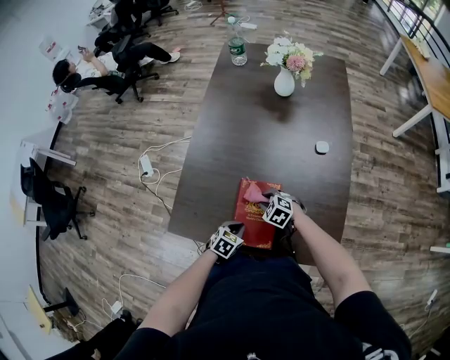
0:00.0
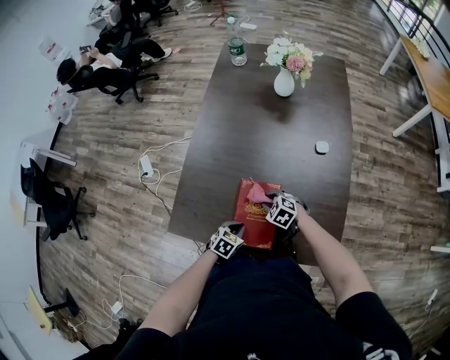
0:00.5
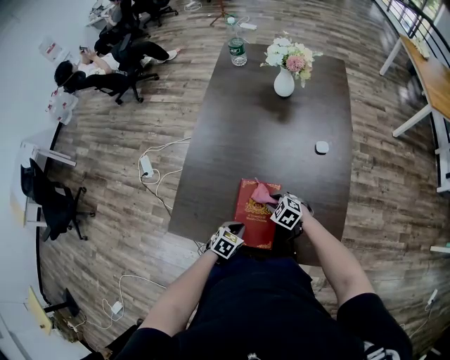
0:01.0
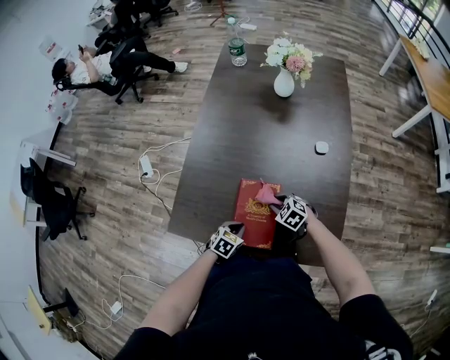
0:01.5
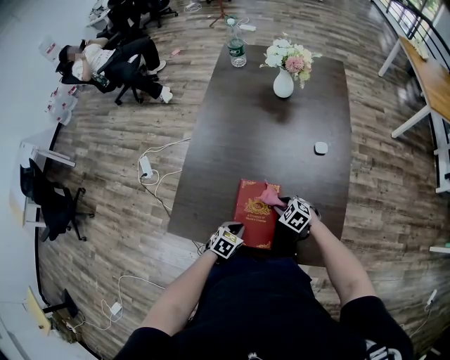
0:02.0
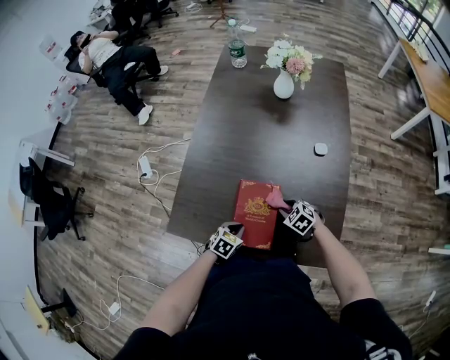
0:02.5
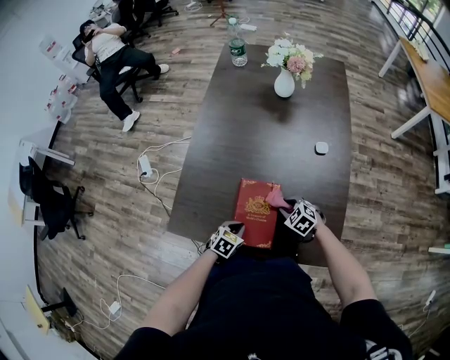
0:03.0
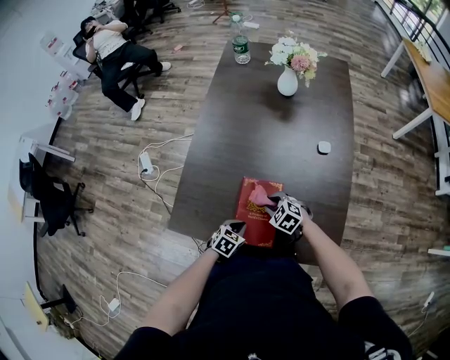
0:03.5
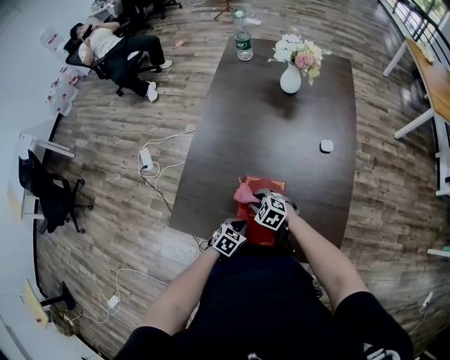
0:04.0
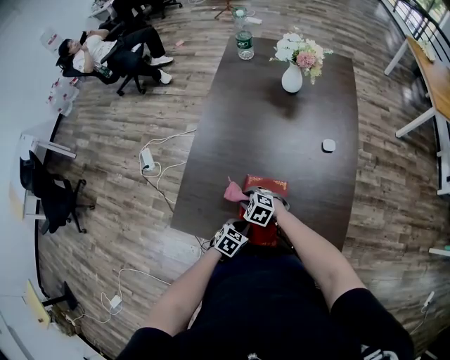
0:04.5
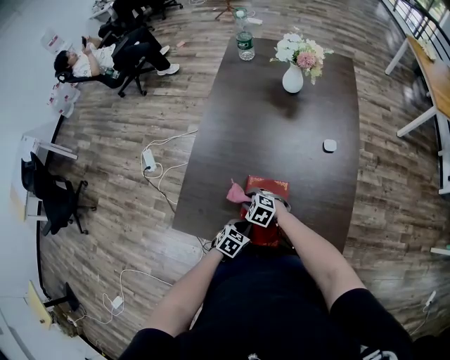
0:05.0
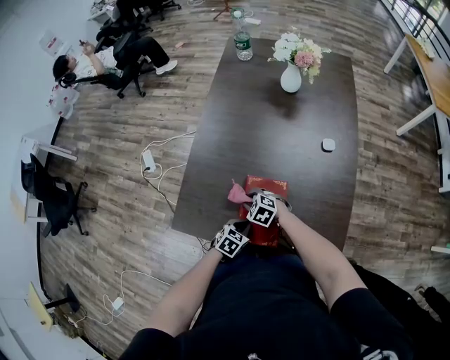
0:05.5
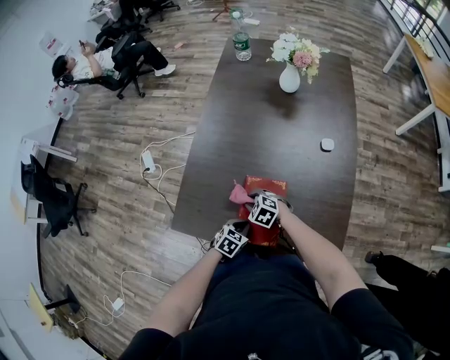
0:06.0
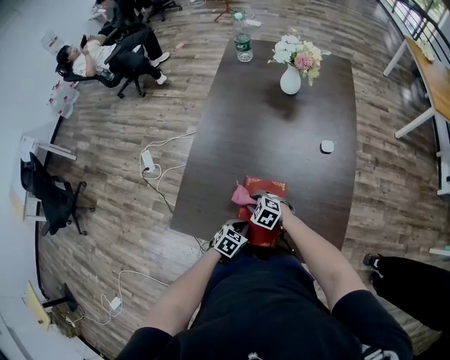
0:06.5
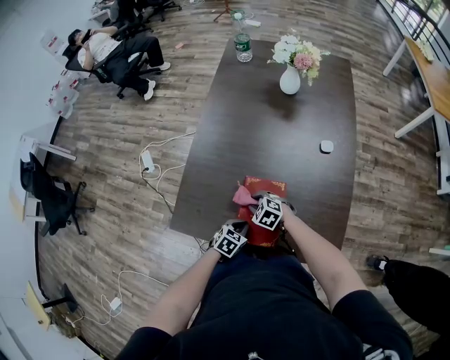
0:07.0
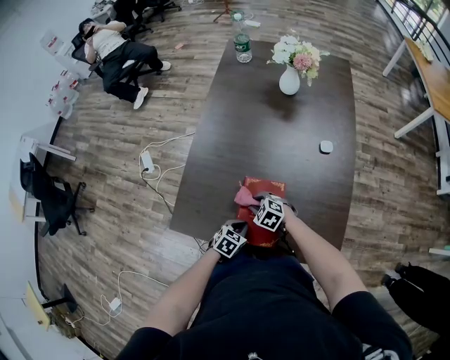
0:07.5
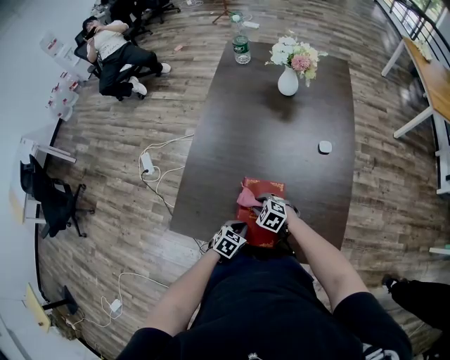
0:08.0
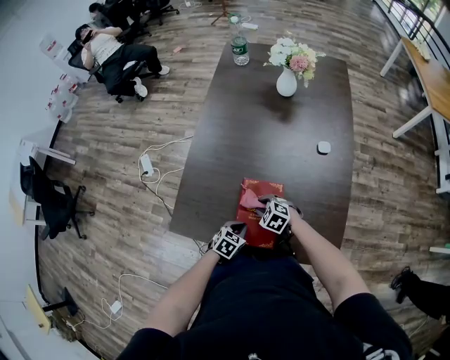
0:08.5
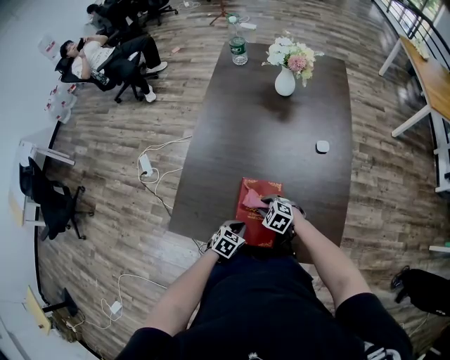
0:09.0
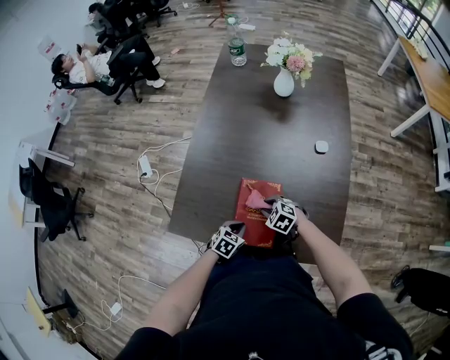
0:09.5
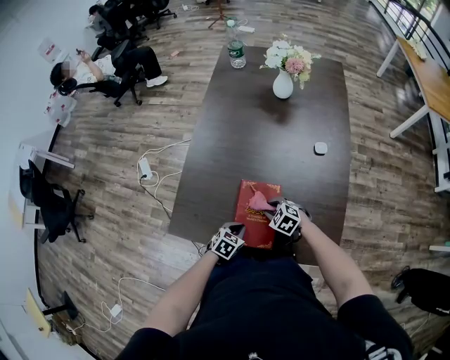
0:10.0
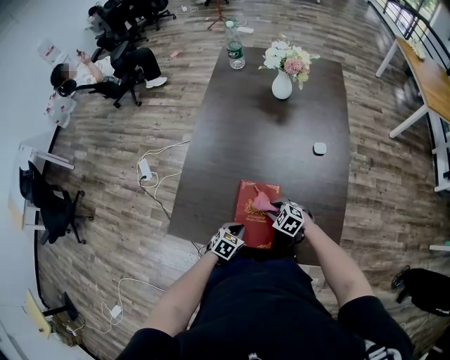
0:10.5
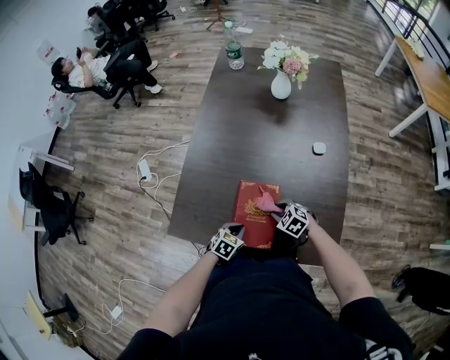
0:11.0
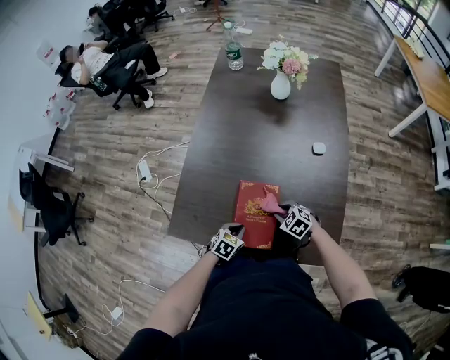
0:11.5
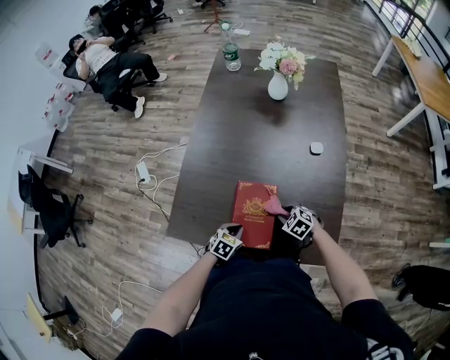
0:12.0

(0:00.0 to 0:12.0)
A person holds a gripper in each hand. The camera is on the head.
0:00.0 - 0:02.0: The right gripper shifts about 5 cm to the right.
0:02.0 - 0:04.0: The right gripper shifts some 10 cm to the left.
0:04.0 - 0:08.0: The grippers move only a little.
0:08.0 - 0:10.0: The right gripper shifts approximately 5 cm to the right.
0:10.0 - 0:12.0: The right gripper is displaced to the right by roughly 5 cm.

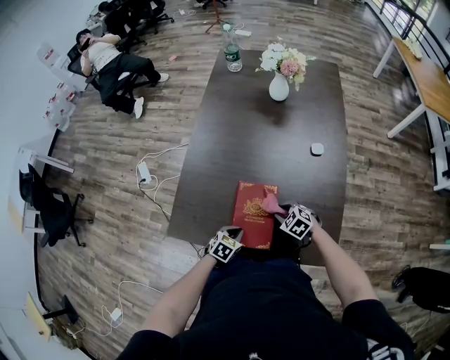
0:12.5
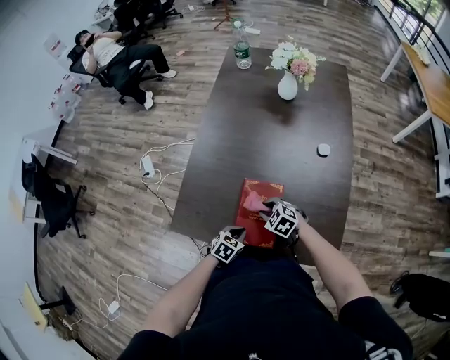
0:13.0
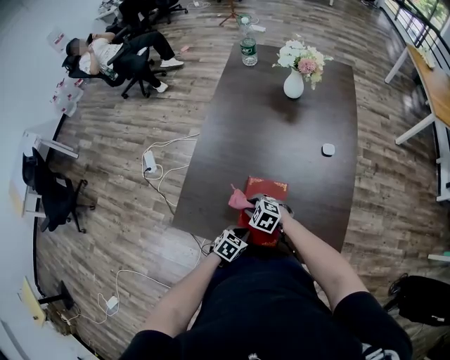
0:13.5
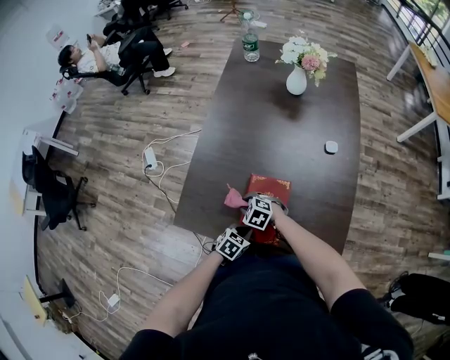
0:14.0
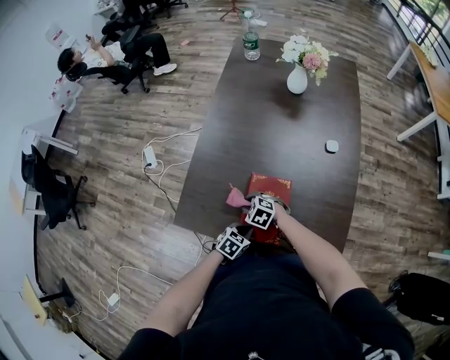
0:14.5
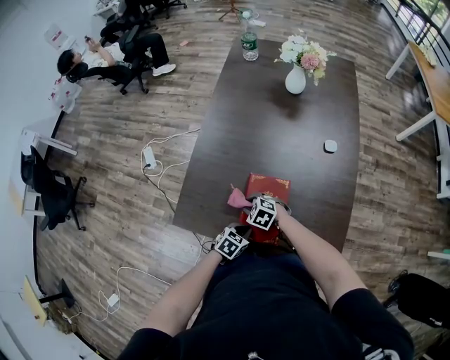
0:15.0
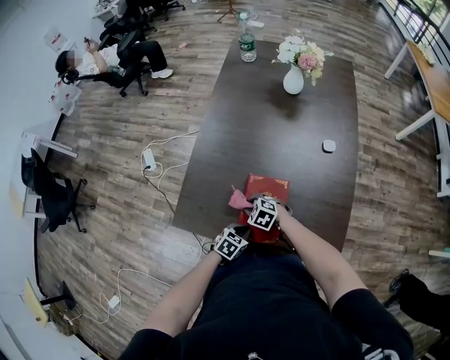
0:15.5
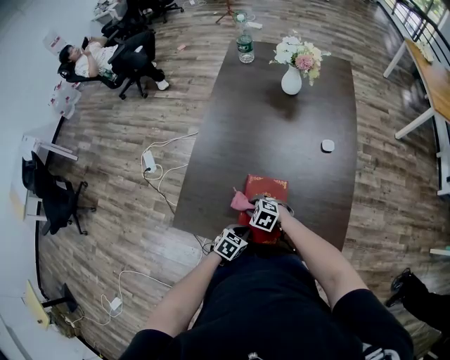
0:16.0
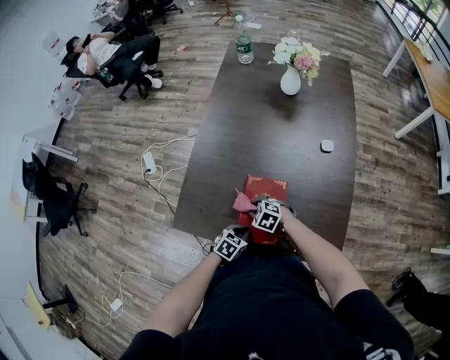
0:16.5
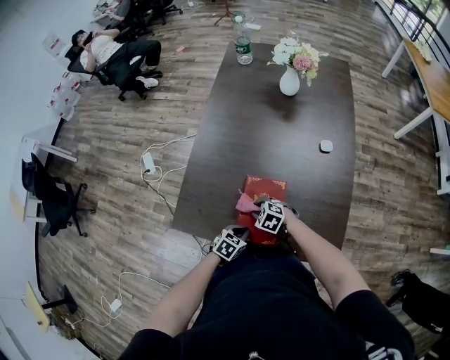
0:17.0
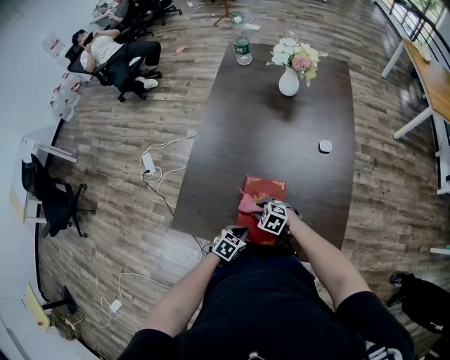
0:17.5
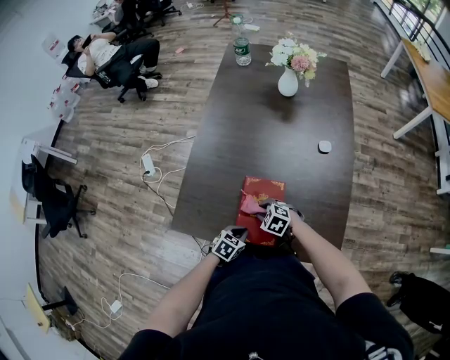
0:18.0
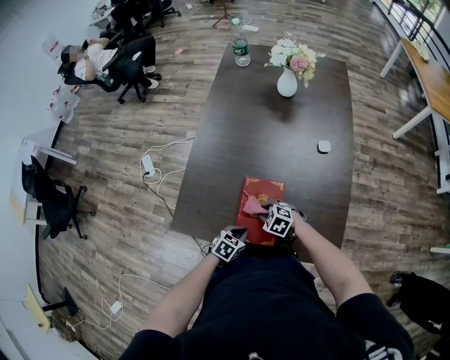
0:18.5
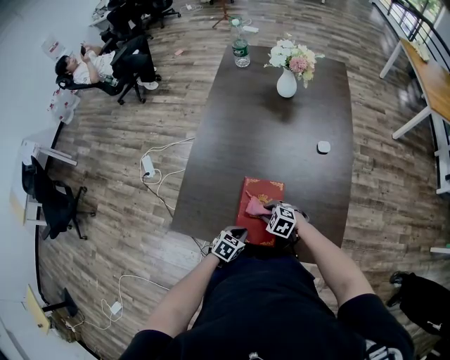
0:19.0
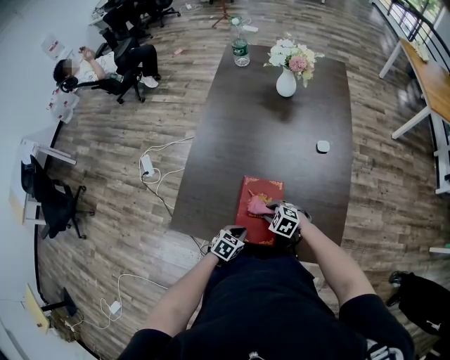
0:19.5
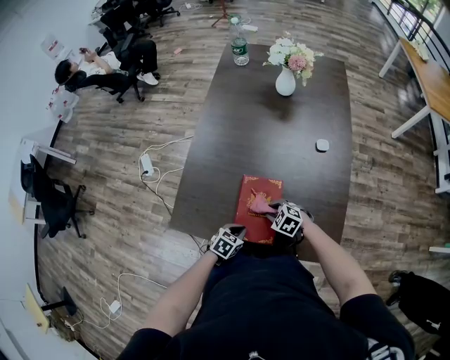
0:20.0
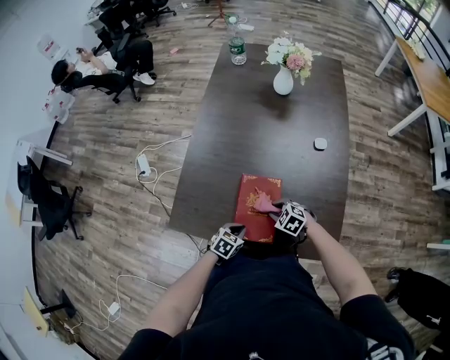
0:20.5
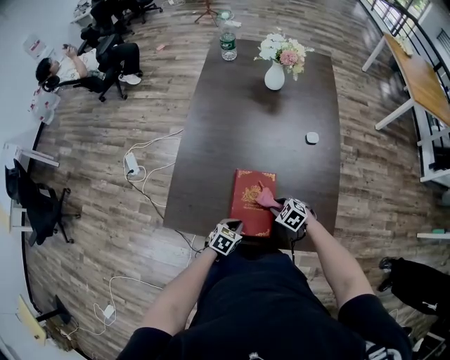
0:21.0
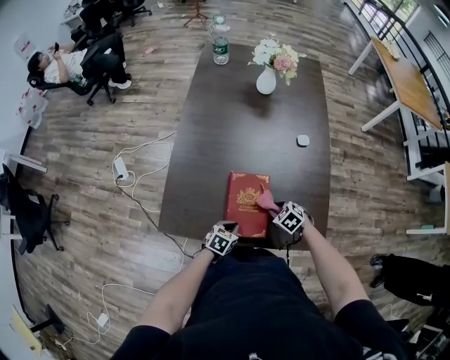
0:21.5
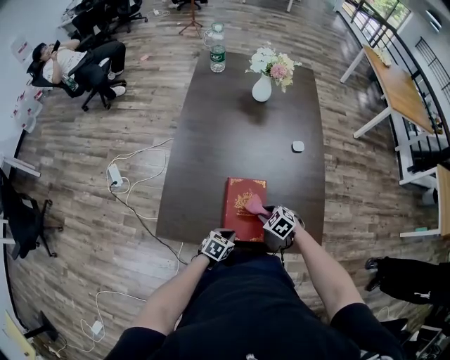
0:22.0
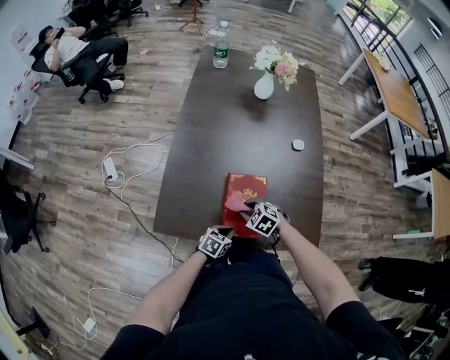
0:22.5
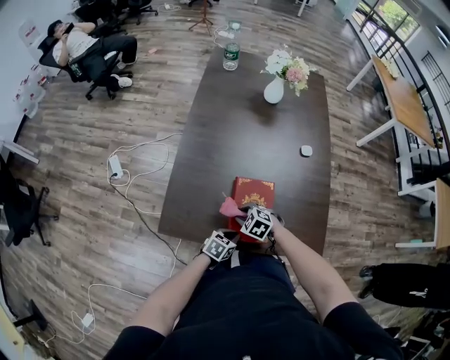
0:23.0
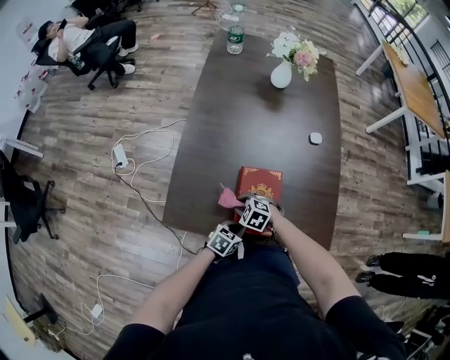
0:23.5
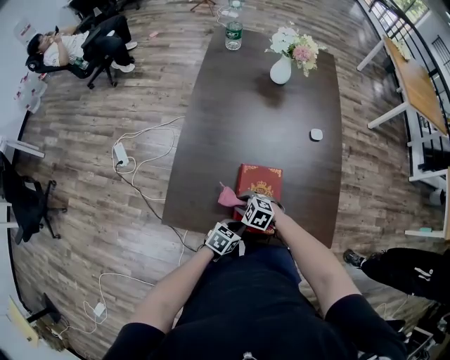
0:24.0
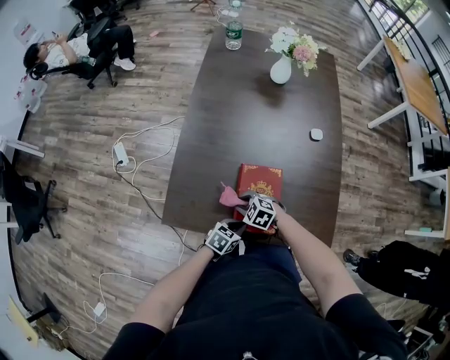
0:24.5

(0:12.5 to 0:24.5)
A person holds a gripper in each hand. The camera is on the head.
0:12.5 - 0:14.5: The right gripper changes place by approximately 20 cm.
0:14.5 - 0:16.5: The grippers make only small movements.
0:16.5 - 0:18.5: The right gripper ends up roughly 5 cm from where it was.
0:18.5 - 0:20.5: The right gripper moves roughly 5 cm.
0:20.5 - 0:22.5: The right gripper goes approximately 5 cm to the left.
0:22.5 - 0:24.5: The right gripper ends up about 10 cm from where it was.

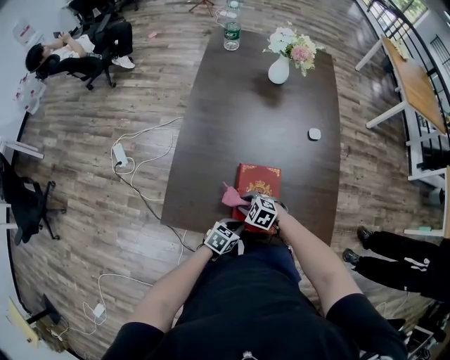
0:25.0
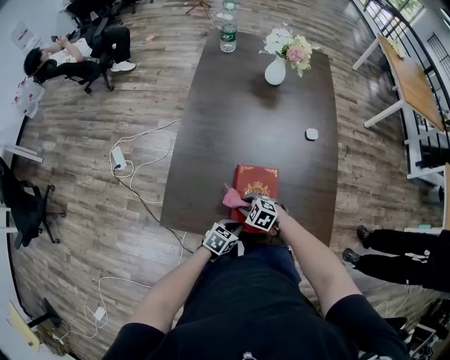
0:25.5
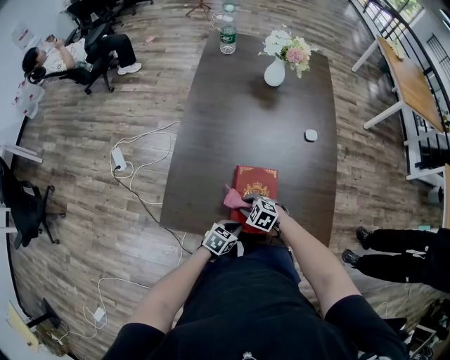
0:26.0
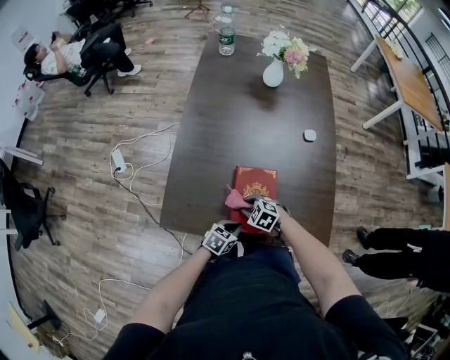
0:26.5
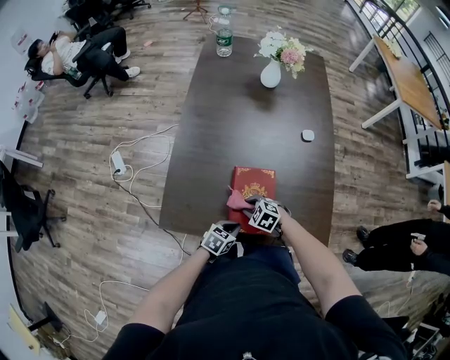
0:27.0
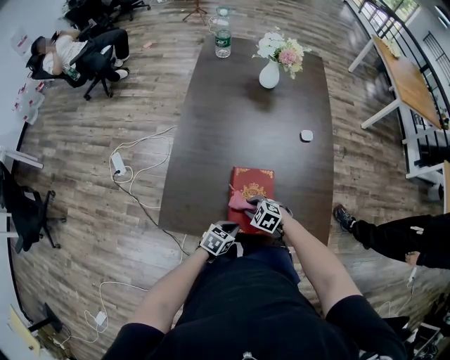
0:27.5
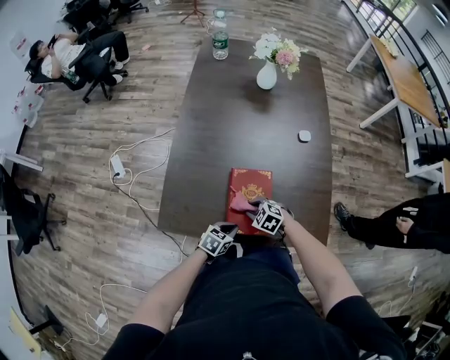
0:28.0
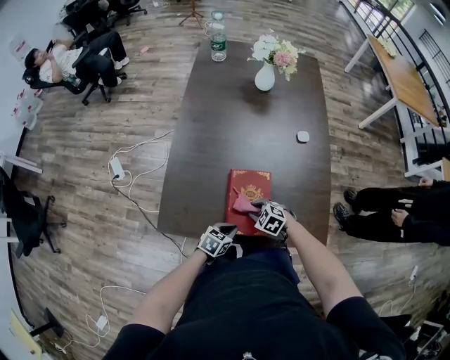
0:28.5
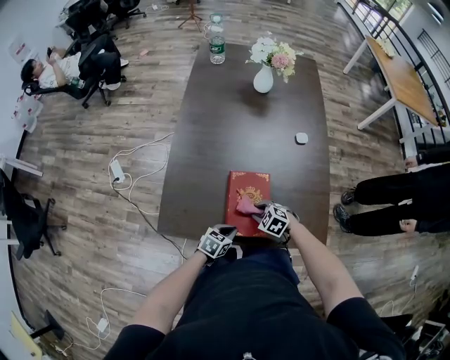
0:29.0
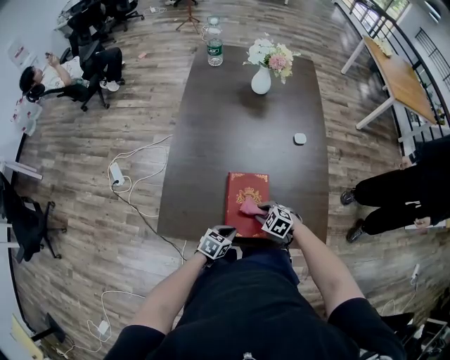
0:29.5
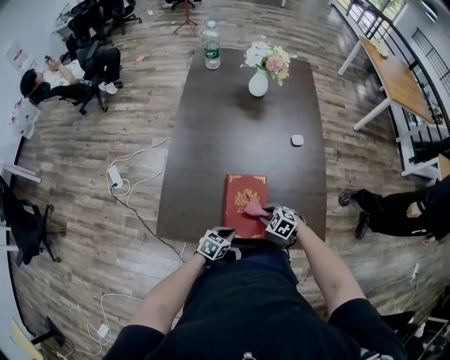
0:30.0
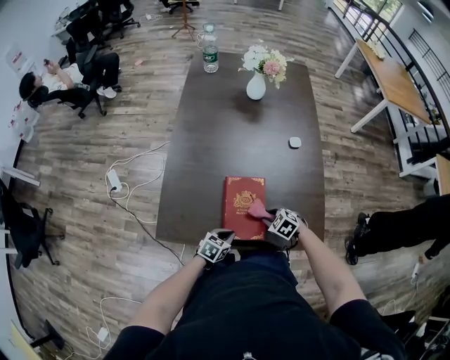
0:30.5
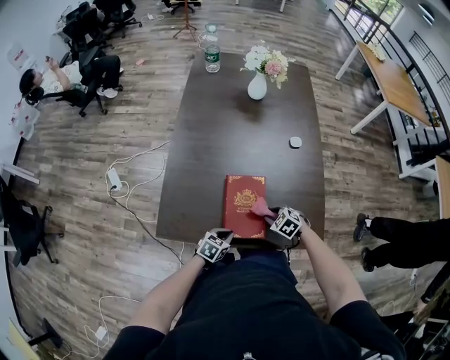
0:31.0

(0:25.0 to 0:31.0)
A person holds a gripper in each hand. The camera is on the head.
0:25.0 - 0:27.0: There are only small adjustments of the grippers.
0:27.0 - 0:29.0: The right gripper changes place by roughly 5 cm.
0:29.0 - 0:31.0: The right gripper shifts by approximately 5 cm.
